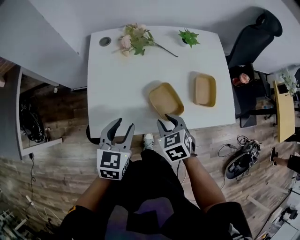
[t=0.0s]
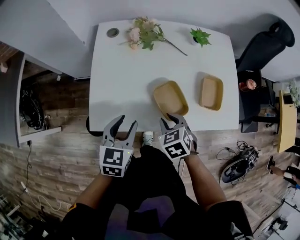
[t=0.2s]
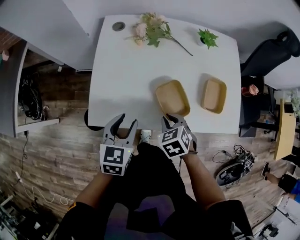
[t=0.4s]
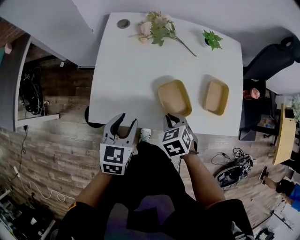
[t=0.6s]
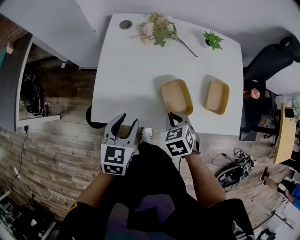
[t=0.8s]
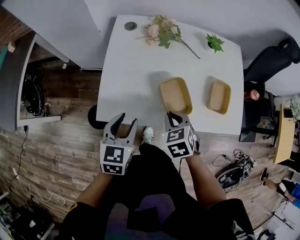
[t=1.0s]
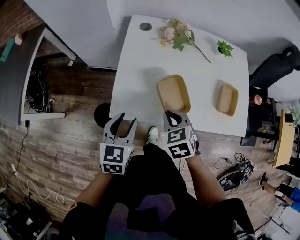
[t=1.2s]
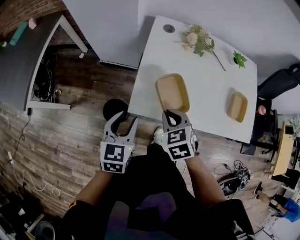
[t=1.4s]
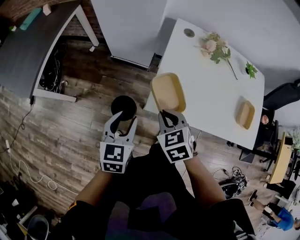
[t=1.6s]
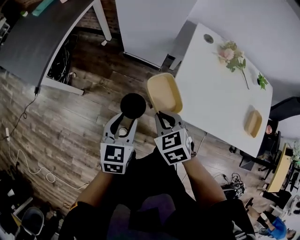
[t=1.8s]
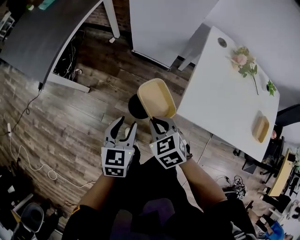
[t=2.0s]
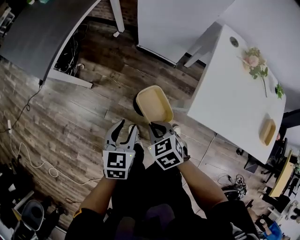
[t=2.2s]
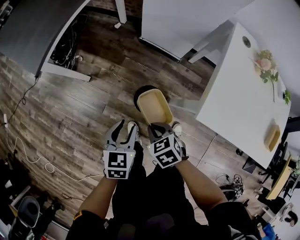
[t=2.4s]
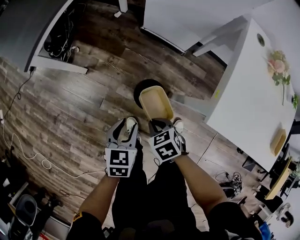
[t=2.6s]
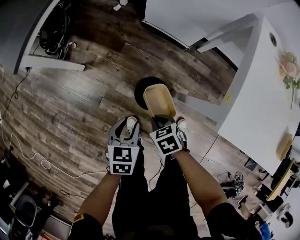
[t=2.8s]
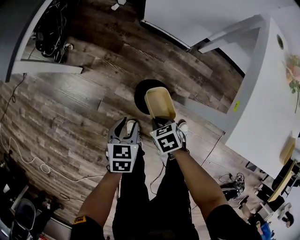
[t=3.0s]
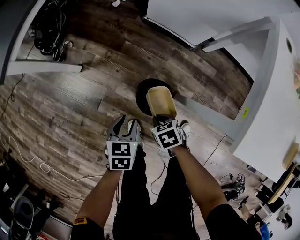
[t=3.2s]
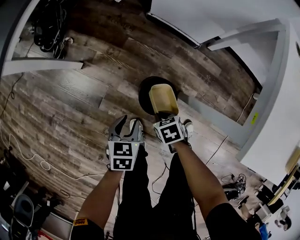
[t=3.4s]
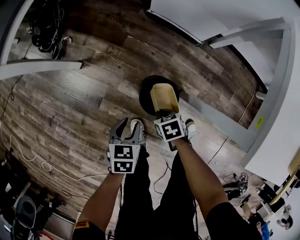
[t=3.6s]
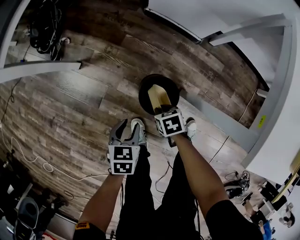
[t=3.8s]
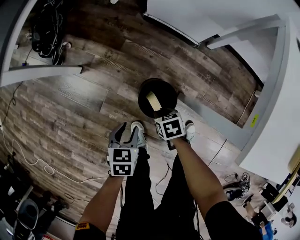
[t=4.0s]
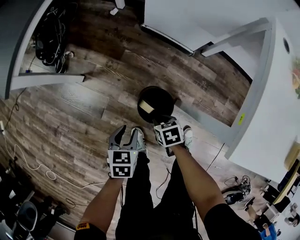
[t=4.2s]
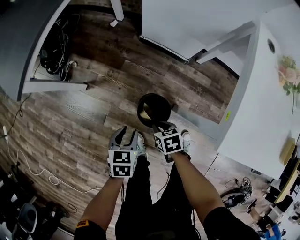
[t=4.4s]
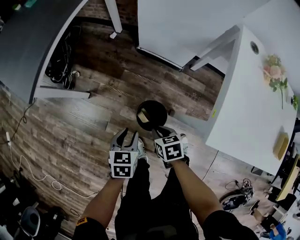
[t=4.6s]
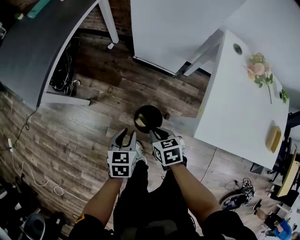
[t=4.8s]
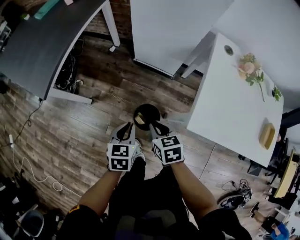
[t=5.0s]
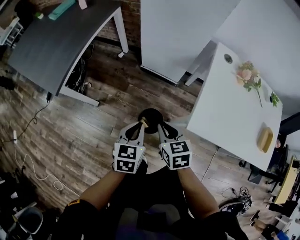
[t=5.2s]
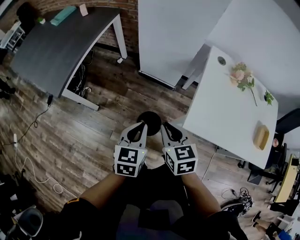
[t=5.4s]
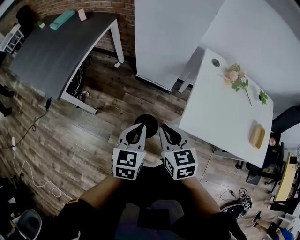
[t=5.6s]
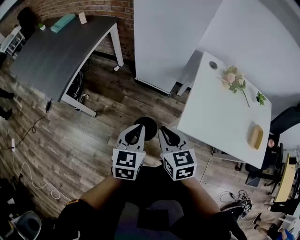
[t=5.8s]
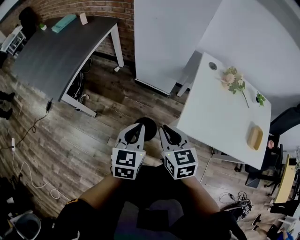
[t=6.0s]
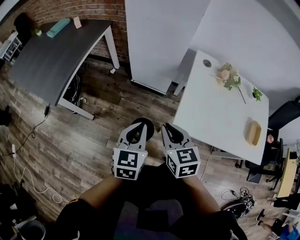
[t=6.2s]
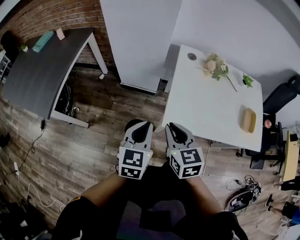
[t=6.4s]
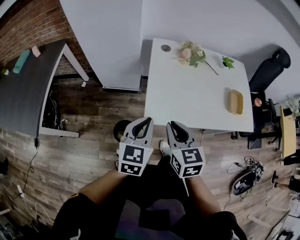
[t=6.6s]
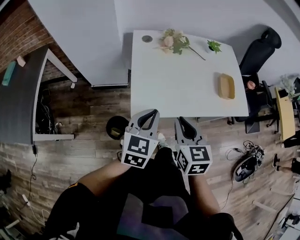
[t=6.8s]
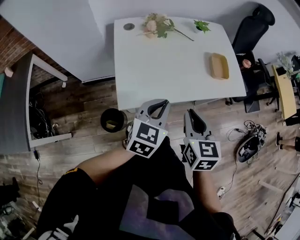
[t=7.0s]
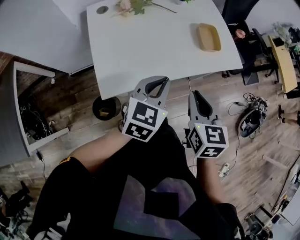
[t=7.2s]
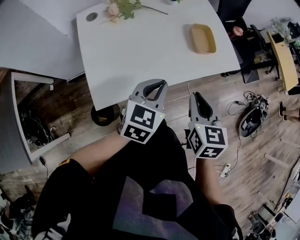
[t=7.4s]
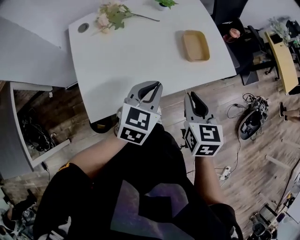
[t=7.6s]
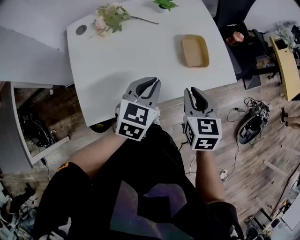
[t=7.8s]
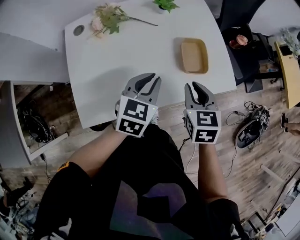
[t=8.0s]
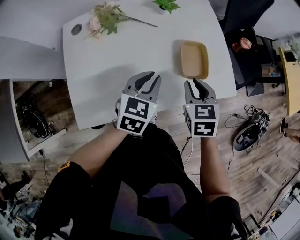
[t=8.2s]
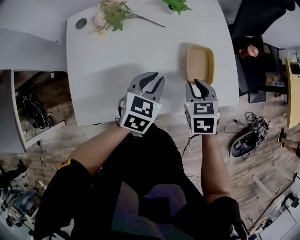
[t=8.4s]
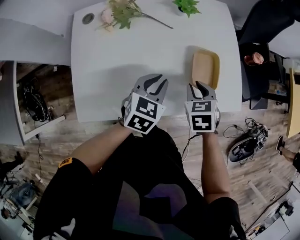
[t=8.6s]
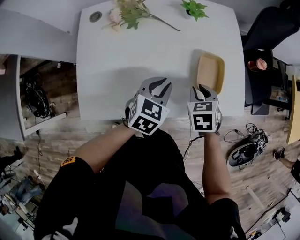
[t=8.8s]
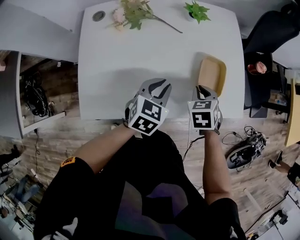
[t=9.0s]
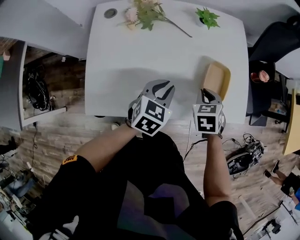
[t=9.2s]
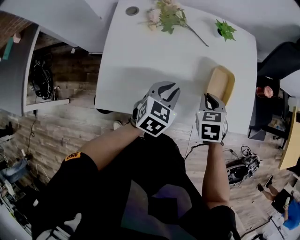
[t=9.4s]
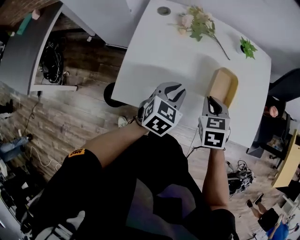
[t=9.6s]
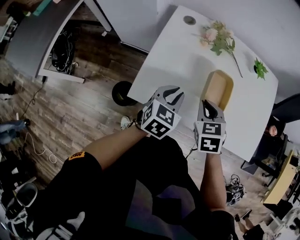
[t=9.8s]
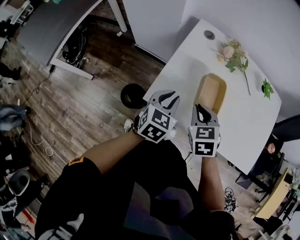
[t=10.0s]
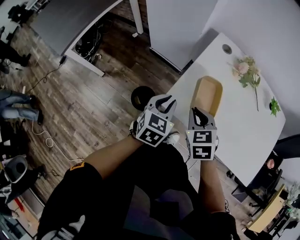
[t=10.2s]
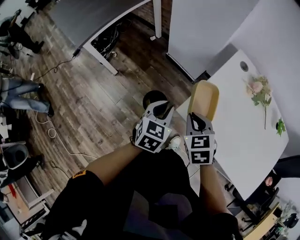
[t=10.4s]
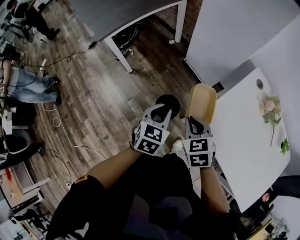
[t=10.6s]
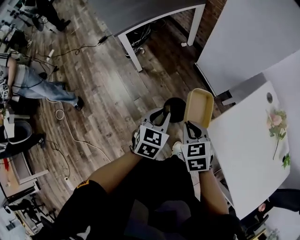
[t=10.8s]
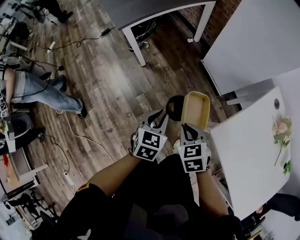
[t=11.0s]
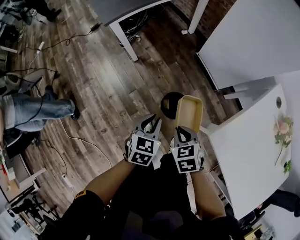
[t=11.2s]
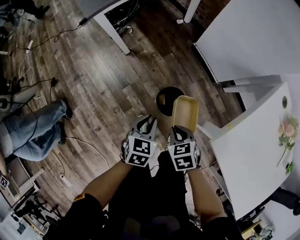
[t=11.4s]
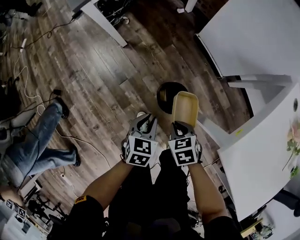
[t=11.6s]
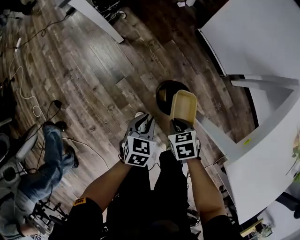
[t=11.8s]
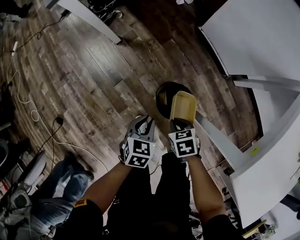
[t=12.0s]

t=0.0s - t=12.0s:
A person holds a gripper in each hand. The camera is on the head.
t=0.0s - t=1.6s: Both grippers travel together to the left, about 30 cm. The right gripper rotates about 20 degrees, and closes its fingers, while the left gripper swivels roughly 20 degrees.
t=1.6s - t=3.0s: The grippers both shift downward by approximately 40 cm. The right gripper changes its angle by roughly 30 degrees; the left gripper rotates some 30 degrees.
t=3.0s - t=4.4s: The right gripper reaches roughly 15 cm downward, then returns. Meanwhile the left gripper goes downward and returns, approximately 10 cm each way.
t=4.4s - t=6.0s: Both grippers travel together upward, about 40 cm. The left gripper swivels some 30 degrees, and closes up; the right gripper angles its fingers upward, by approximately 30 degrees.
t=6.0s - t=7.6s: The two grippers travel together, some 50 cm. The right gripper rotates about 50 degrees, while the left gripper turns by roughly 60 degrees.
t=7.6s - t=9.0s: The grippers both shift forward and downward by about 20 cm. The right gripper changes its angle by some 40 degrees.
t=9.0s - t=10.4s: The two grippers travel together, about 50 cm. The right gripper rotates roughly 50 degrees, while the left gripper turns by about 50 degrees.
t=10.4s - t=12.0s: Both grippers travel together downward, approximately 40 cm. The right gripper changes its angle by approximately 30 degrees. The left gripper swivels about 30 degrees.

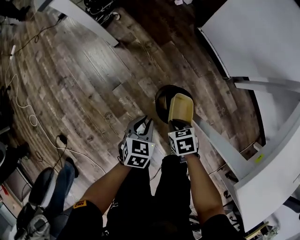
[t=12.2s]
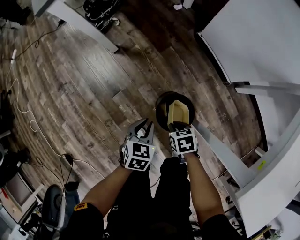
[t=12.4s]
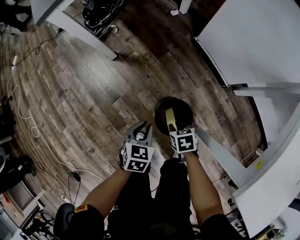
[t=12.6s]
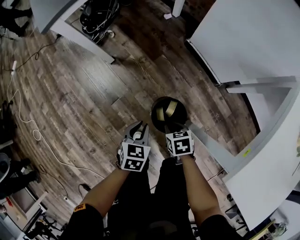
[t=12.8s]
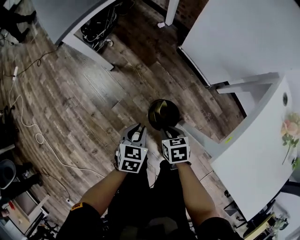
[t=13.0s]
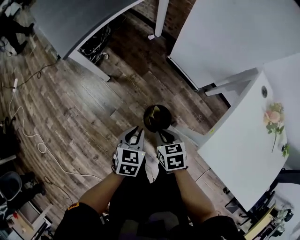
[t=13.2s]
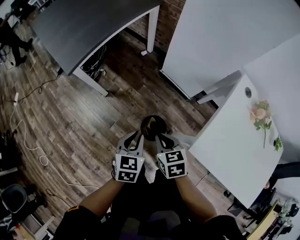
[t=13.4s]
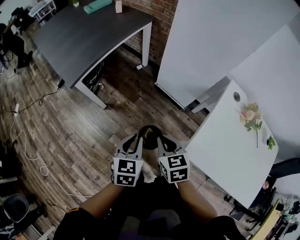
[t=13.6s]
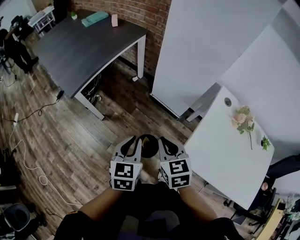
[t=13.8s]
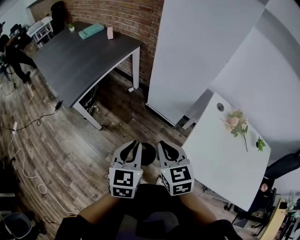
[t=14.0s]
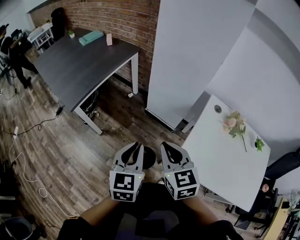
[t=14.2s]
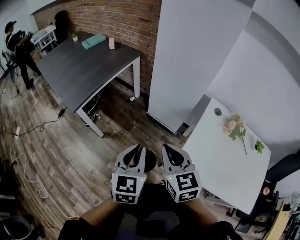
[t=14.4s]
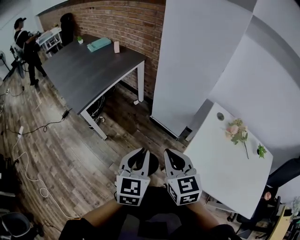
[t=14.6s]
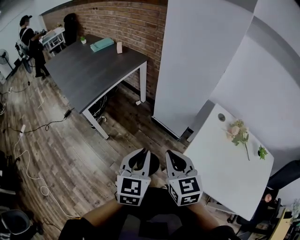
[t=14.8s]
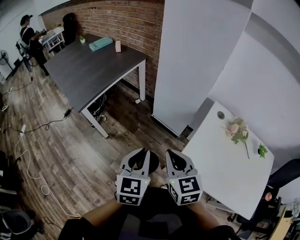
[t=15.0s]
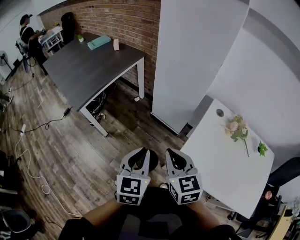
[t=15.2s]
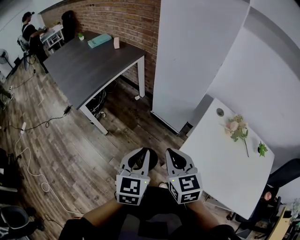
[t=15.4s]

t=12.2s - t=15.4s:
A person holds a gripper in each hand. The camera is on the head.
t=12.2s - t=13.8s: Both grippers move upward, some 50 cm. The left gripper rotates approximately 30 degrees. Meanwhile the right gripper angles its fingers upward, by approximately 30 degrees.
t=13.8s - t=15.4s: The grippers both shift upward, to the right and backward by approximately 15 cm.

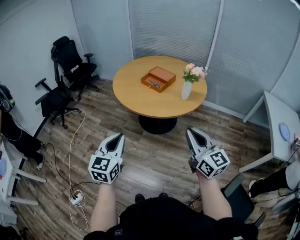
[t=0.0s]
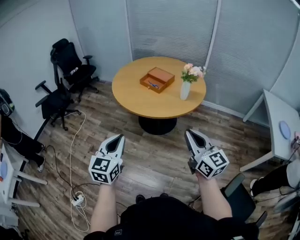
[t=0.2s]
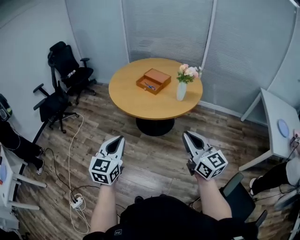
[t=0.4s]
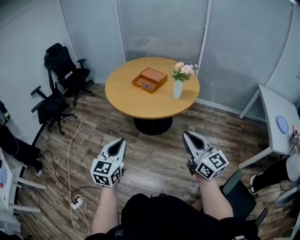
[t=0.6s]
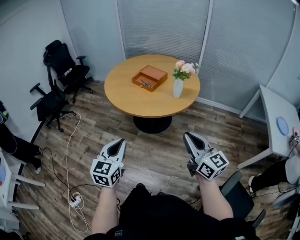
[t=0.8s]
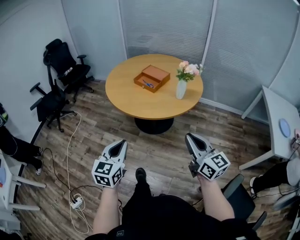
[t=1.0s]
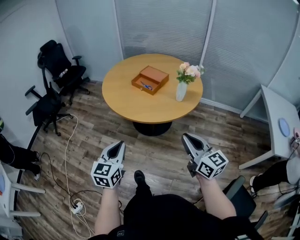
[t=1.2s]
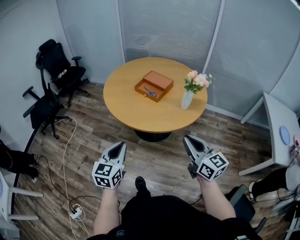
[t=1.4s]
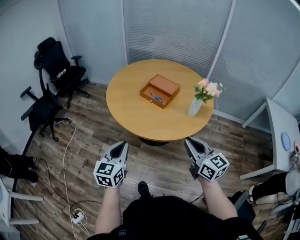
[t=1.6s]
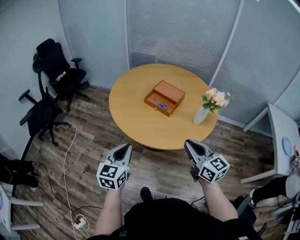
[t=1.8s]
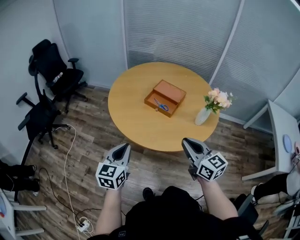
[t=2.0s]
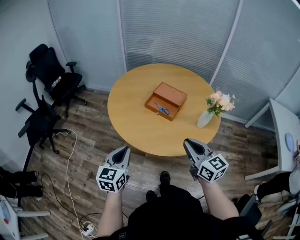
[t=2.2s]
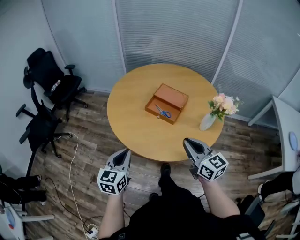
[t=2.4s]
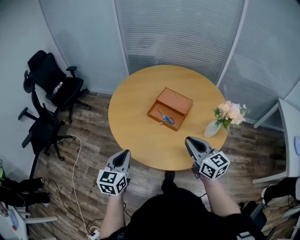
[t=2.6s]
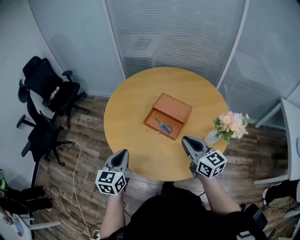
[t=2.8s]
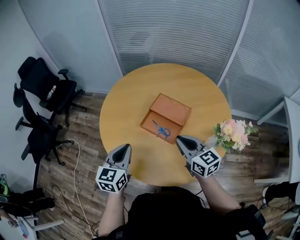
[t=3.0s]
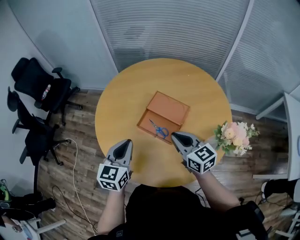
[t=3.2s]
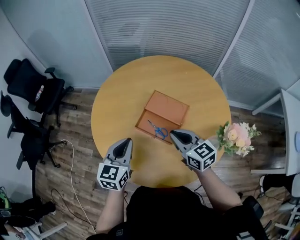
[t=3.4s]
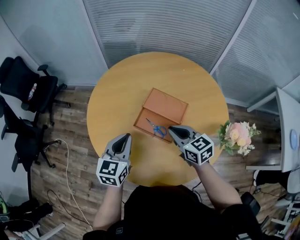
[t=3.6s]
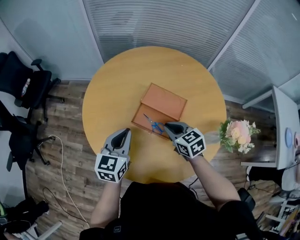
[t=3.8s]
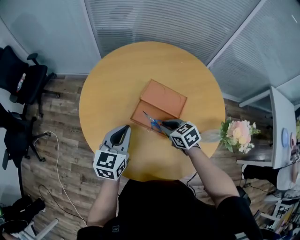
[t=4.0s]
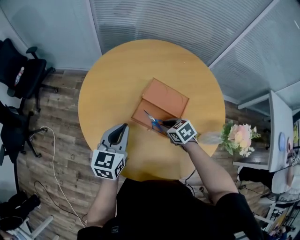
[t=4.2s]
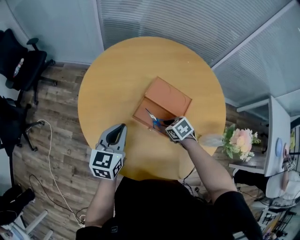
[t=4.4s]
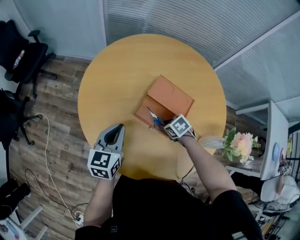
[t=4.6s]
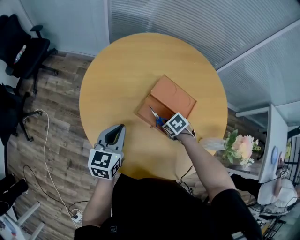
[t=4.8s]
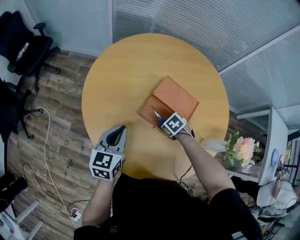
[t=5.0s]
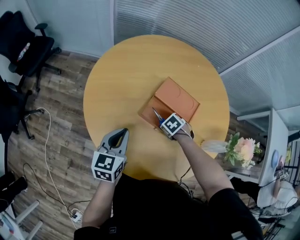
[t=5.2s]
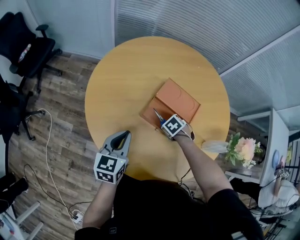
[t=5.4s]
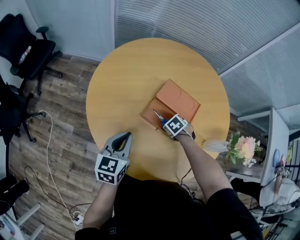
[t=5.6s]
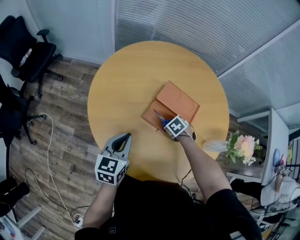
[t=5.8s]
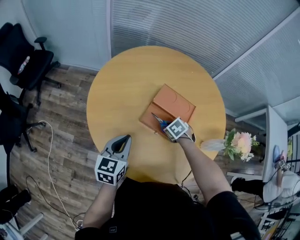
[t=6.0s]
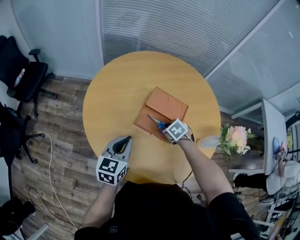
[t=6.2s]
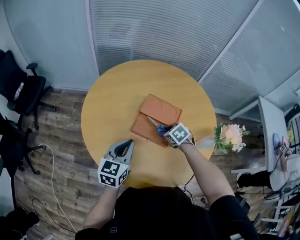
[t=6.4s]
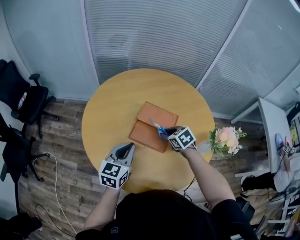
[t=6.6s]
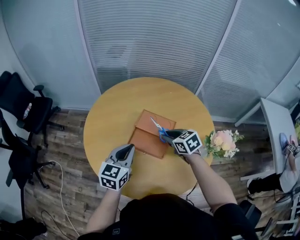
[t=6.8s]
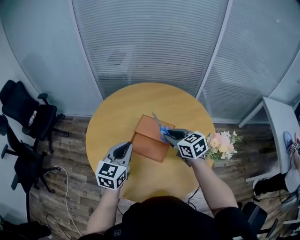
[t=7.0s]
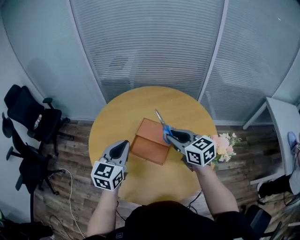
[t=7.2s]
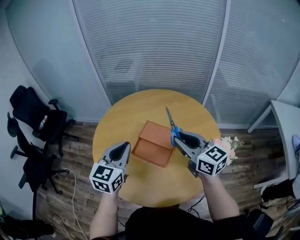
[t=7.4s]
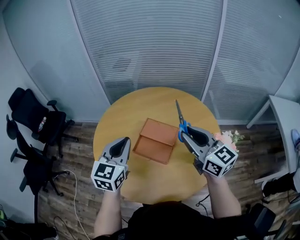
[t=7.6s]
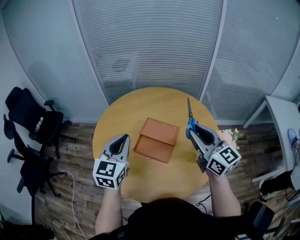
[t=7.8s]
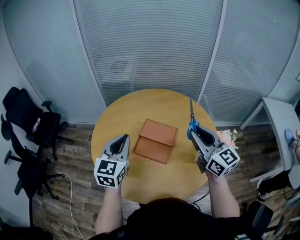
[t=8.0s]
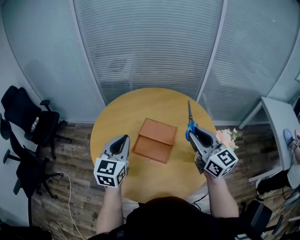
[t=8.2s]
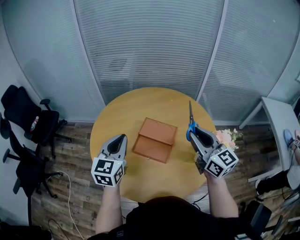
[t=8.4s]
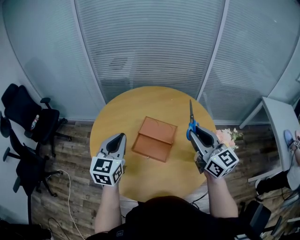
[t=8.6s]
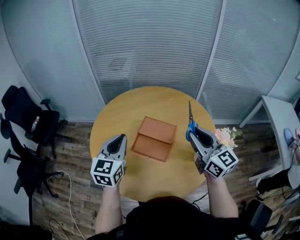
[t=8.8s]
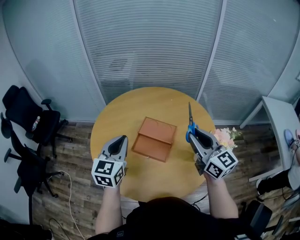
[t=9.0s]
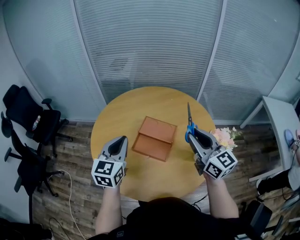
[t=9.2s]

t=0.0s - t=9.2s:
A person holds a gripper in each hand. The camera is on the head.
t=0.0s - t=1.6s: Both grippers move forward, some 20 cm.
t=1.6s - t=3.0s: Both grippers move forward, approximately 35 cm.
t=3.0s - t=4.6s: The right gripper goes approximately 30 cm downward and forward, and points its fingers approximately 60 degrees further downward, while the left gripper shifts some 15 cm forward and downward.
t=4.6s - t=6.2s: There are only small adjustments of the grippers.
t=6.2s - t=7.6s: The left gripper travels upward and to the right by about 20 cm, and rotates some 20 degrees. Meanwhile the right gripper heads upward, covering about 35 cm, and angles its fingers upward, by some 70 degrees.
t=7.6s - t=9.2s: The grippers move only a little.
